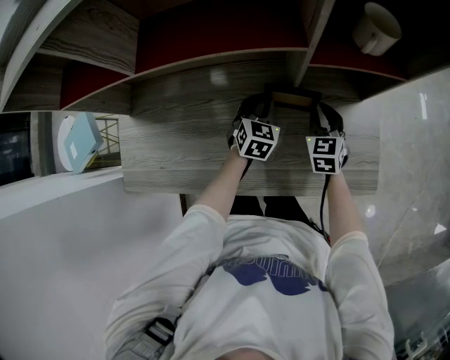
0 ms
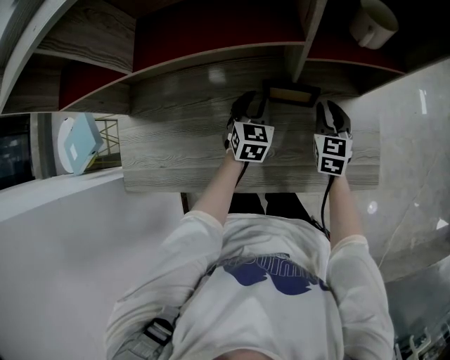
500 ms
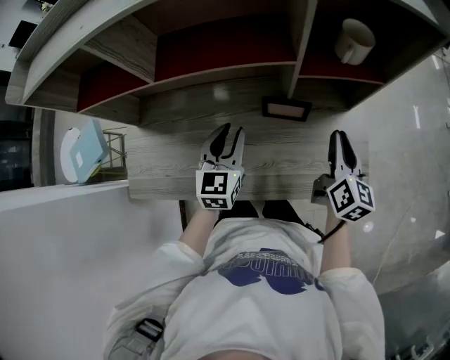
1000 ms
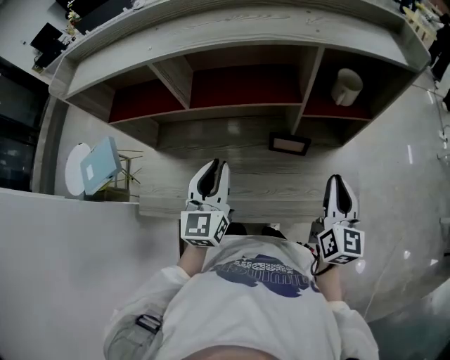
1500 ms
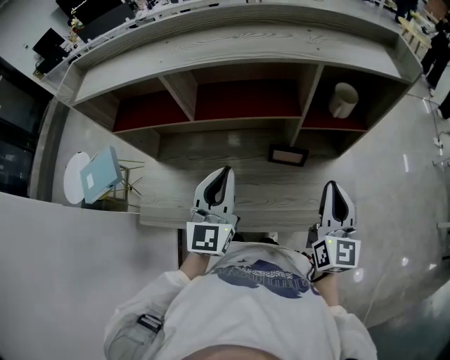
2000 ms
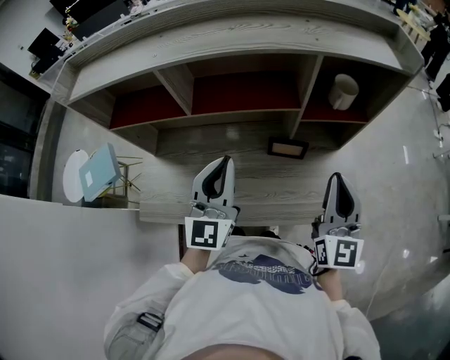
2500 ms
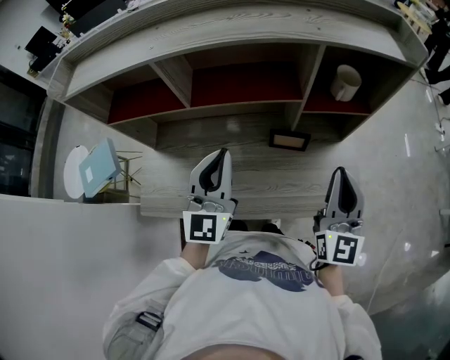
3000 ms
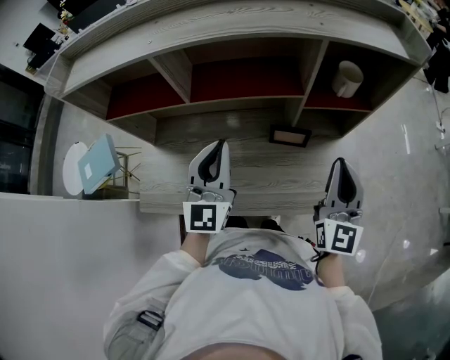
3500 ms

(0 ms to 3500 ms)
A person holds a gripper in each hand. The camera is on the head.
0 ms - 2000 ms: The two grippers go some 35 cm upward and backward. The left gripper points its fingers approximately 40 degrees further upward. The right gripper points its fingers approximately 30 degrees further upward.
2000 ms - 3500 ms: The grippers stay close to where they were, moving slightly.

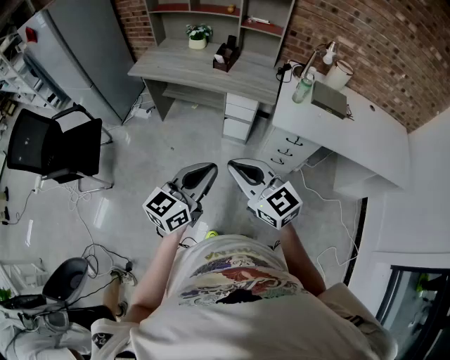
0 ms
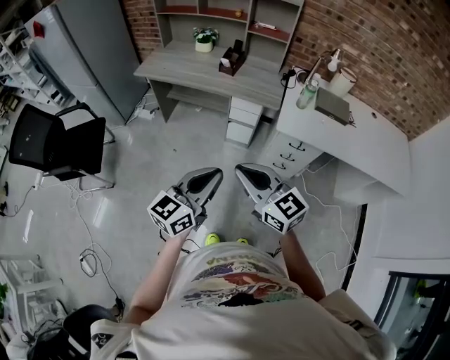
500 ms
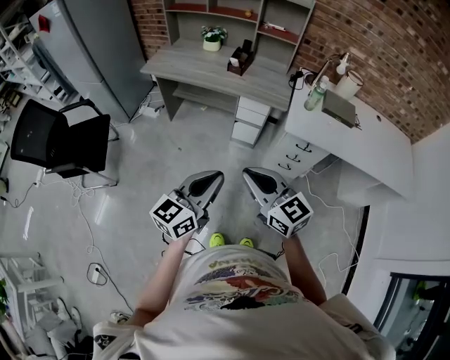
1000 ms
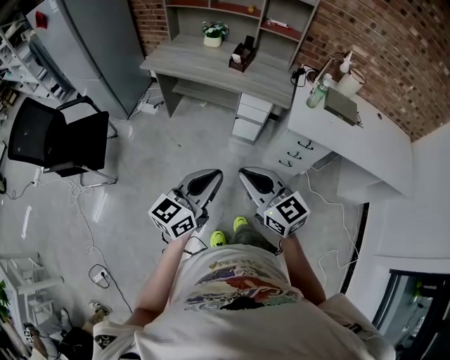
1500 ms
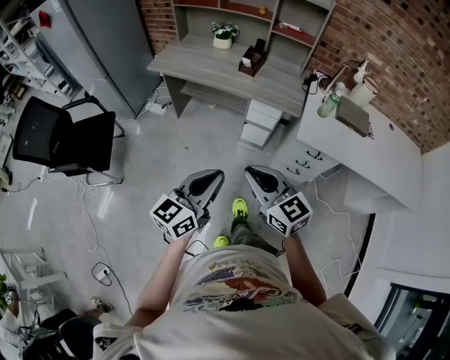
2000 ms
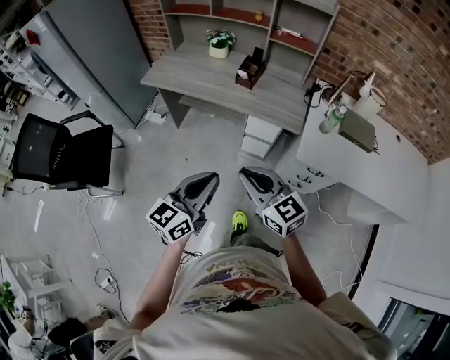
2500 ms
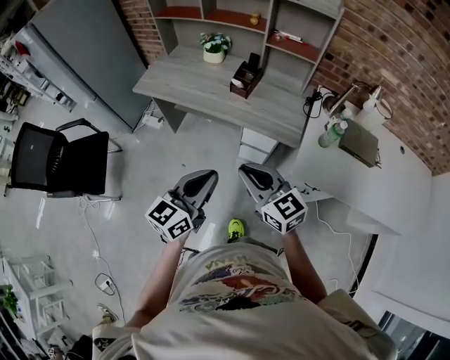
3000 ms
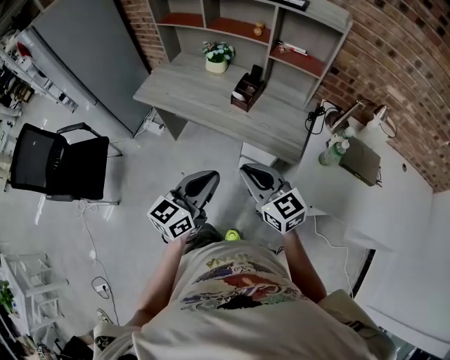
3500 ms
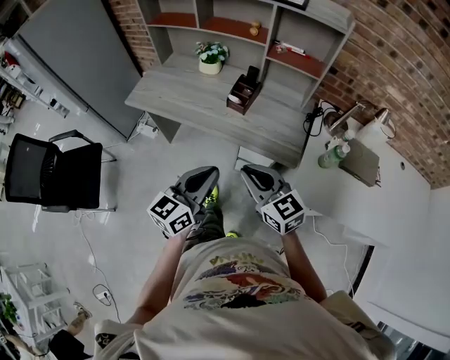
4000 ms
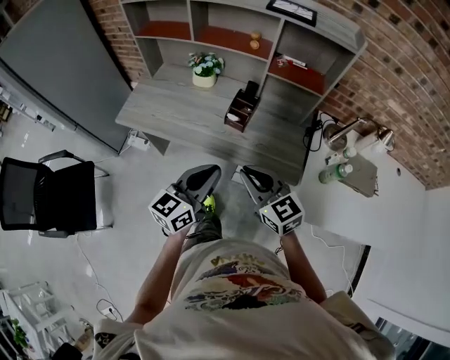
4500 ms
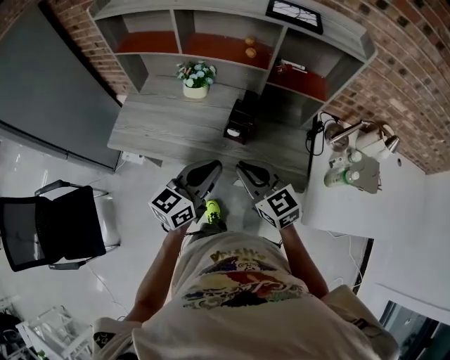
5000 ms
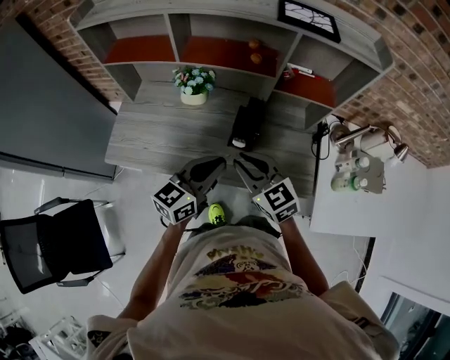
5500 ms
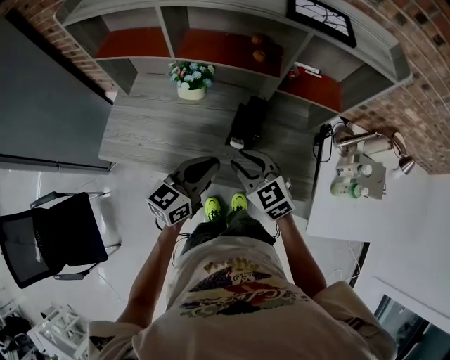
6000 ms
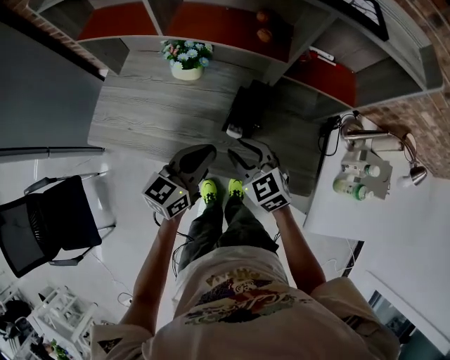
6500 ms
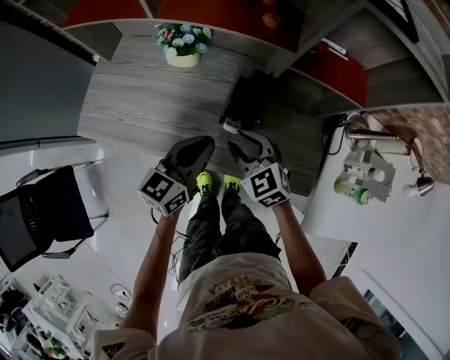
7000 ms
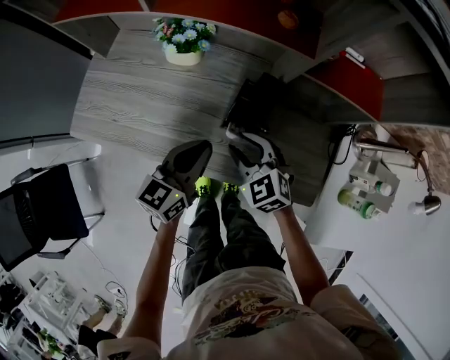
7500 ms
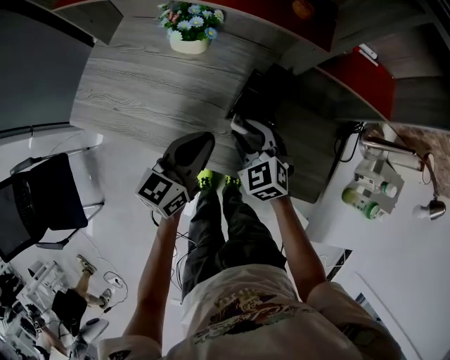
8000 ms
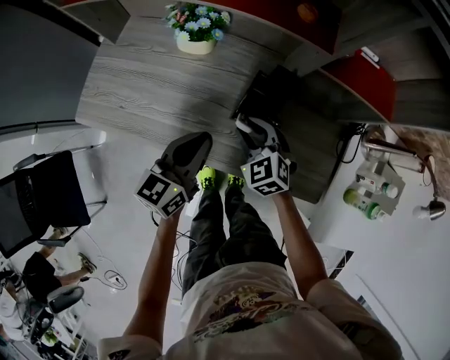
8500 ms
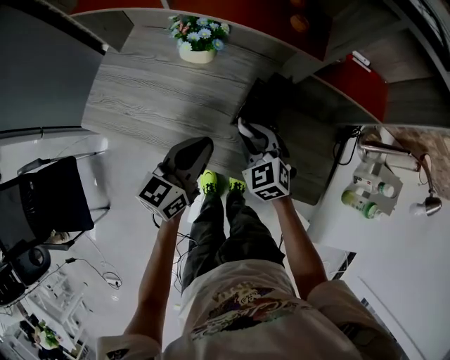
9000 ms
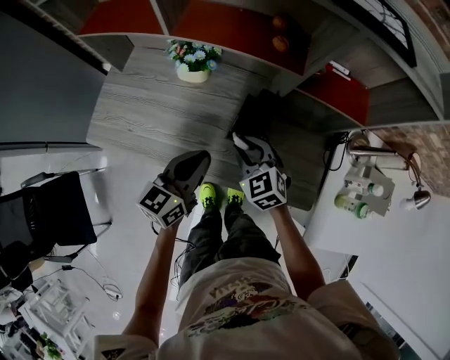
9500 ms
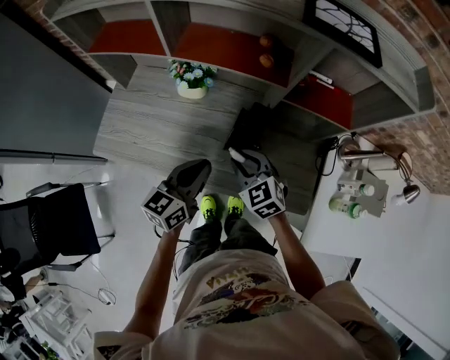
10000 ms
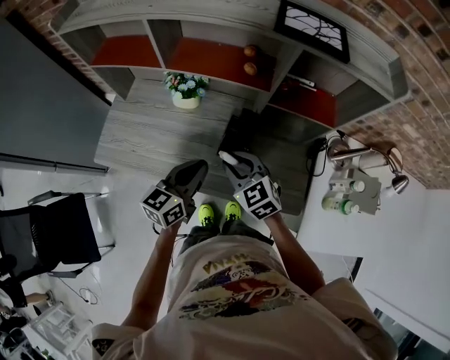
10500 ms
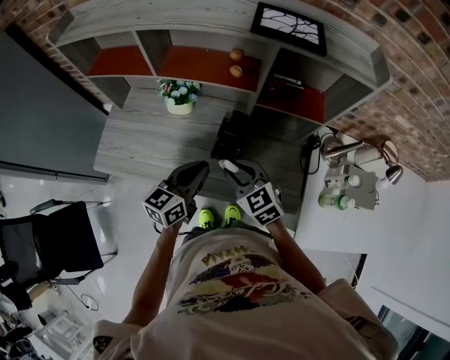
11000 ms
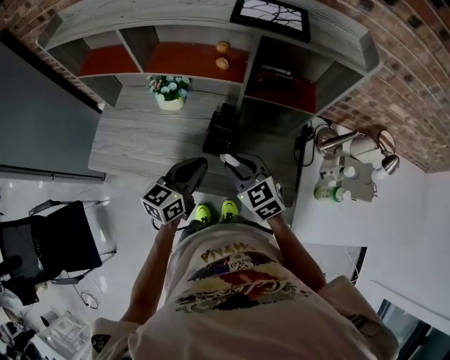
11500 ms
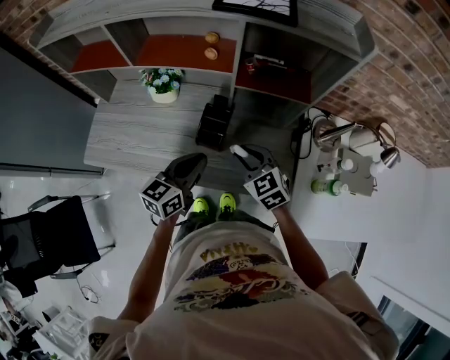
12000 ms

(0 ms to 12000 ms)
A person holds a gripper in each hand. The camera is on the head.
0 ms - 2000 ms: The right gripper heads forward, covering approximately 5 cm. Meanwhile the left gripper is displaced to the left by about 5 cm.
2000 ms - 4000 ms: The grippers both shift forward by about 30 cm.
4000 ms - 6000 ms: Both grippers travel together forward, approximately 30 cm. The right gripper turns by some 20 degrees.
6000 ms - 8000 ms: The grippers both shift downward and forward by some 15 cm.
8000 ms - 10000 ms: Both grippers travel together upward, approximately 10 cm.
10000 ms - 12000 ms: The grippers both shift to the right by approximately 10 cm.

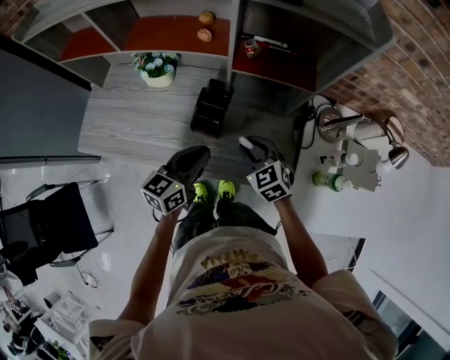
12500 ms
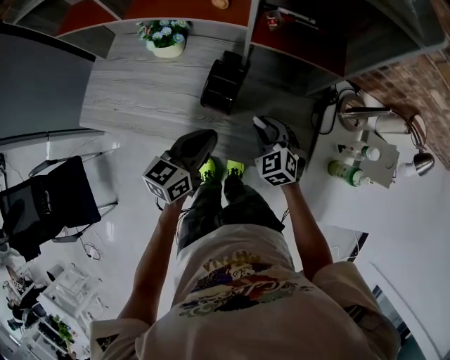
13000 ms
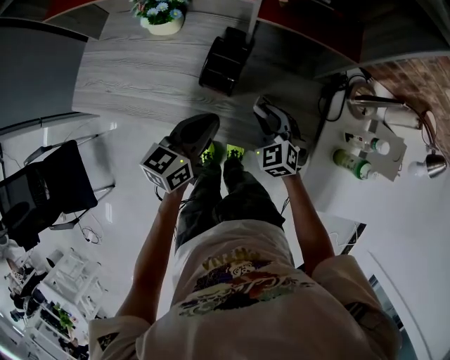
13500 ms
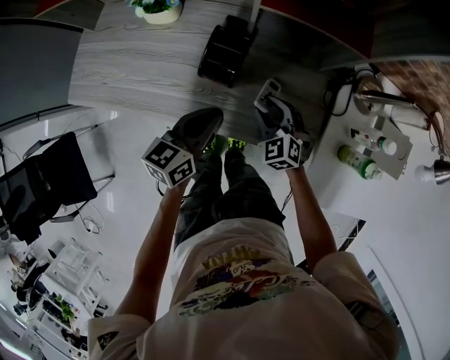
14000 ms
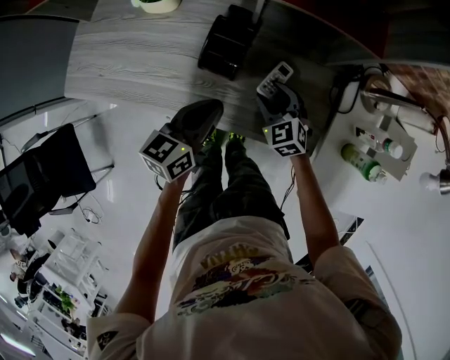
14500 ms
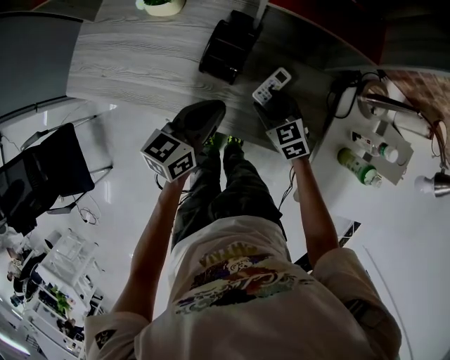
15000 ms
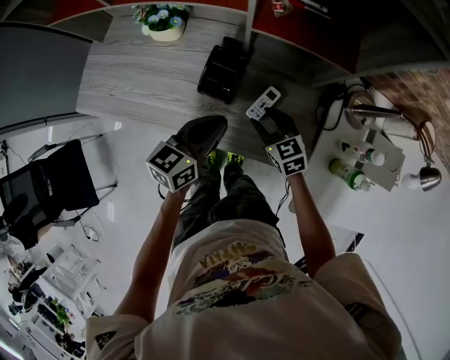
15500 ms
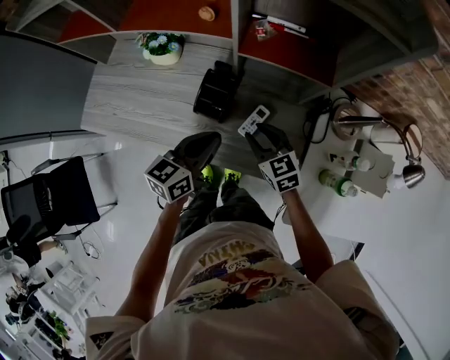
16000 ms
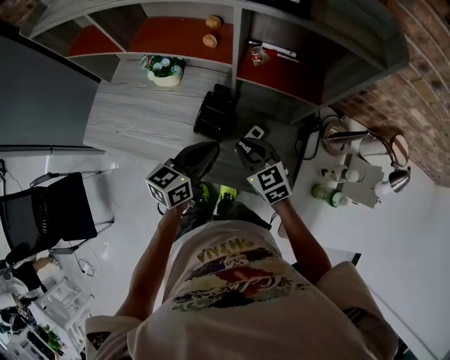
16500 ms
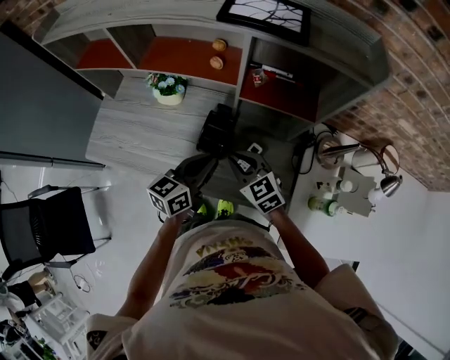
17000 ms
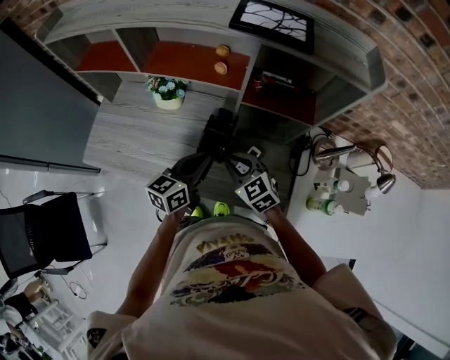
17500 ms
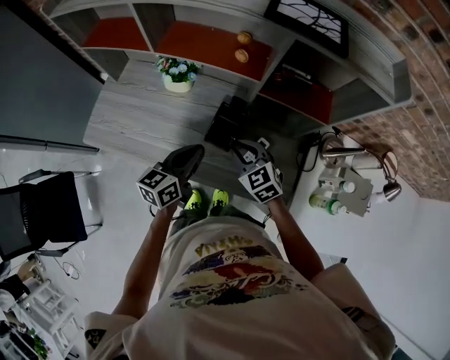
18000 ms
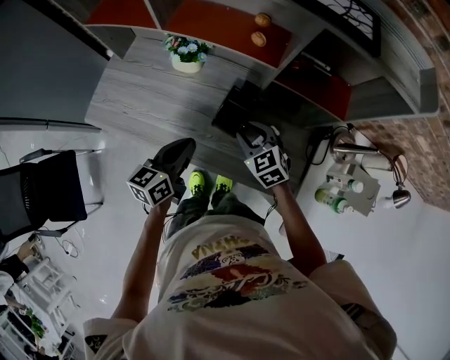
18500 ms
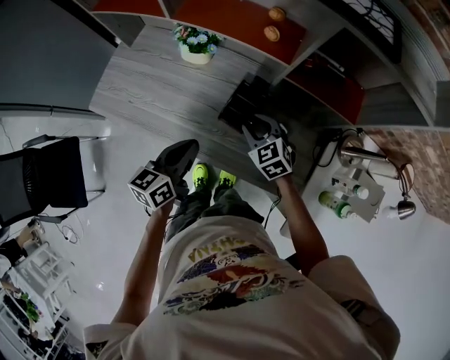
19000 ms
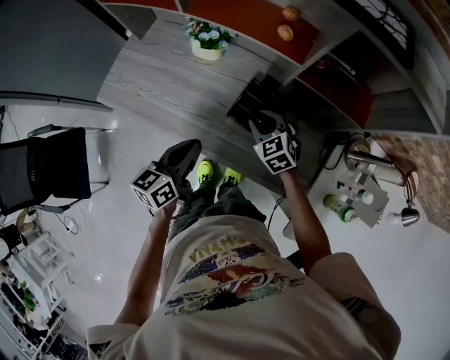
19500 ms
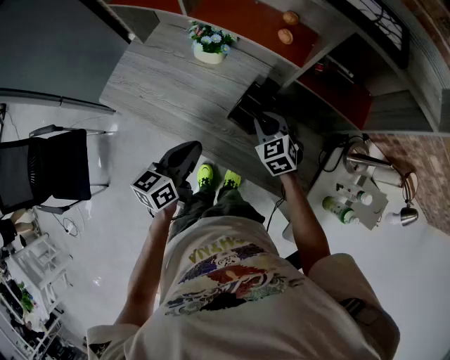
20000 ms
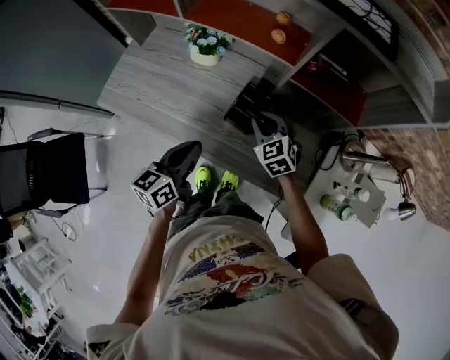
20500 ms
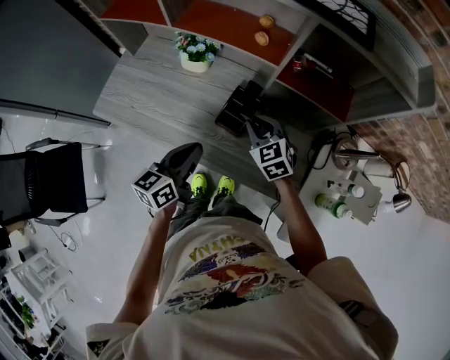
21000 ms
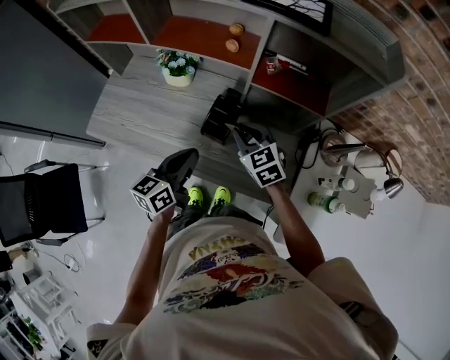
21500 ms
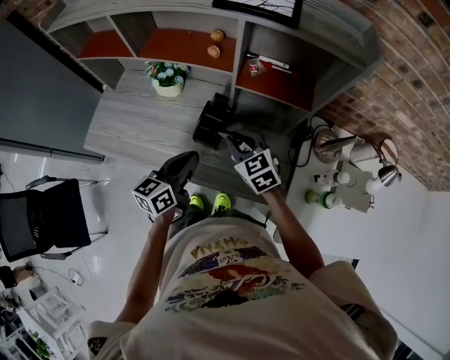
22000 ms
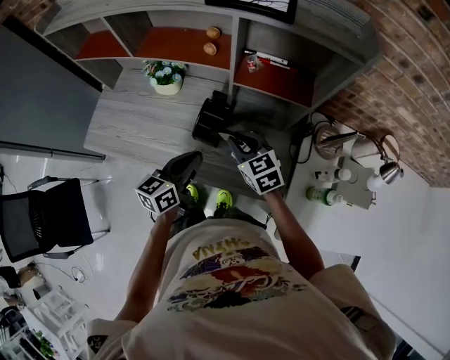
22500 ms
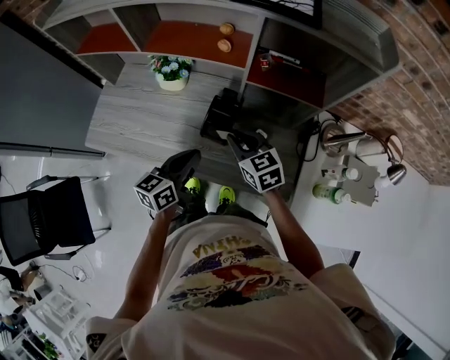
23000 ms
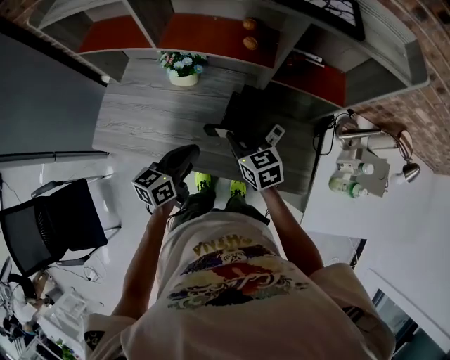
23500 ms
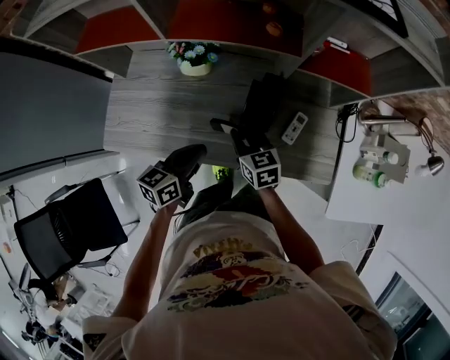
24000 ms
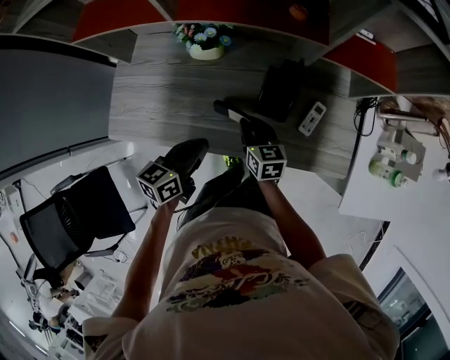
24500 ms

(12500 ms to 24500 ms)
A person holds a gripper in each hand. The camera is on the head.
12500 ms - 14500 ms: The left gripper travels downward by roughly 10 cm. The right gripper is displaced downward by about 15 cm.
14500 ms - 16500 ms: The right gripper heads upward, covering approximately 15 cm, and closes up. Meanwhile the left gripper is displaced upward by approximately 10 cm.
16500 ms - 18500 ms: The left gripper travels to the left by approximately 15 cm; the right gripper shifts roughly 5 cm to the left.
18500 ms - 20500 ms: The grippers make only small movements.
20500 ms - 22500 ms: The right gripper travels upward and to the right by some 10 cm, and turns by roughly 20 degrees. Meanwhile the left gripper moves to the right, some 10 cm.
22500 ms - 24500 ms: The right gripper goes roughly 20 cm to the left and downward, and rotates some 30 degrees; the left gripper heads to the left, covering some 20 cm.
